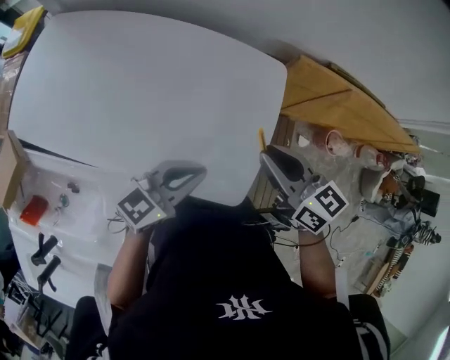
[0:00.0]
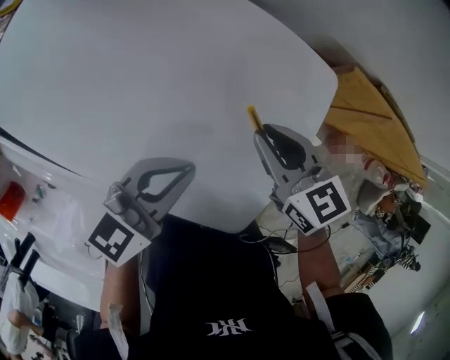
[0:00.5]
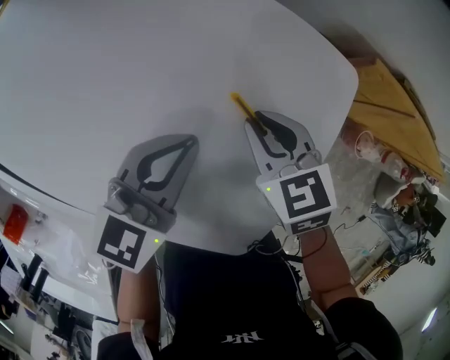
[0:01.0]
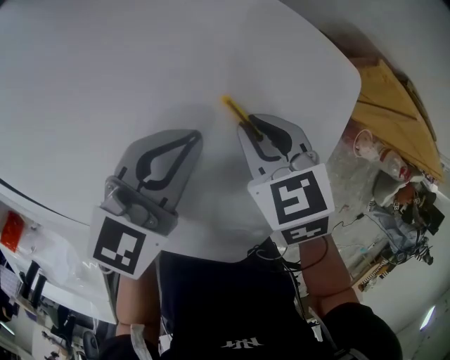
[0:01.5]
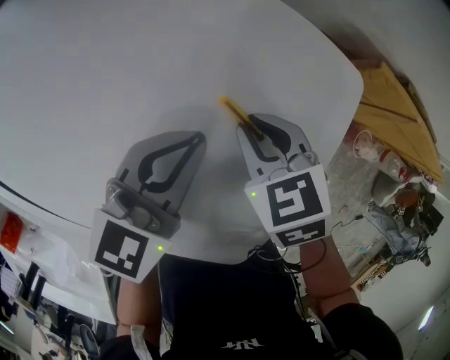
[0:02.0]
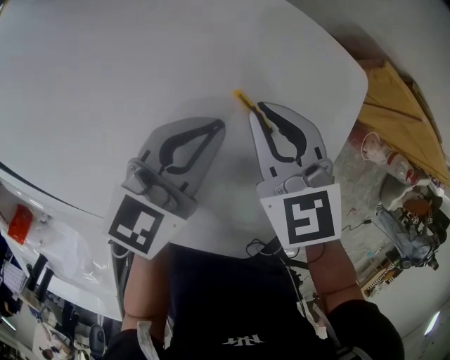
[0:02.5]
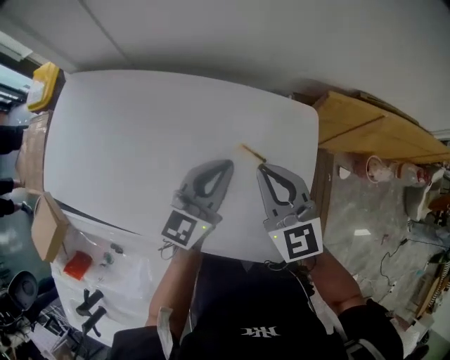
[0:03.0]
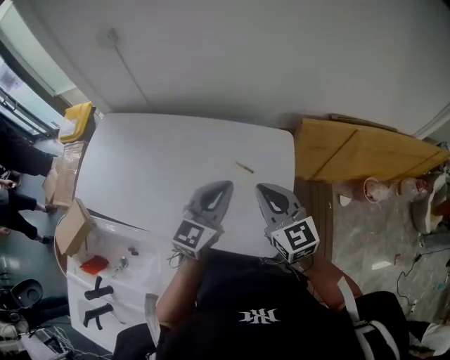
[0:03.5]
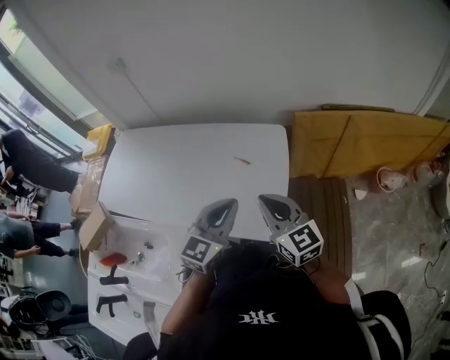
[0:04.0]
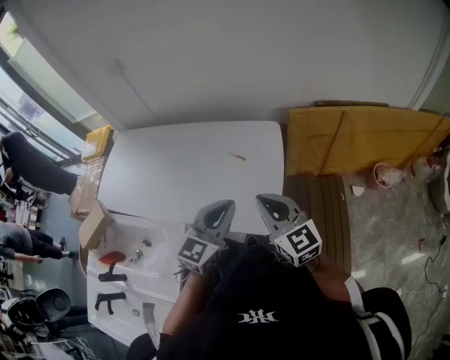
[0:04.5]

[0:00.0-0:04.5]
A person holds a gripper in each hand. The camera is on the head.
0:00.0 to 0:02.0: The left gripper moves forward and downward, roughly 30 cm, and rotates roughly 30 degrees. Meanwhile the right gripper heads downward and forward, covering some 35 cm, and points its fingers roughly 40 degrees further downward.
0:02.0 to 0:04.5: The right gripper is displaced upward and backward by some 50 cm, and points its fingers approximately 50 degrees further upward. Meanwhile the left gripper travels backward and upward by roughly 50 cm.

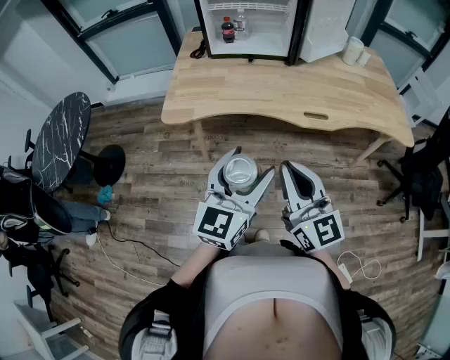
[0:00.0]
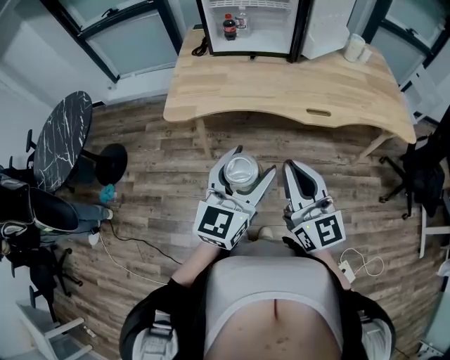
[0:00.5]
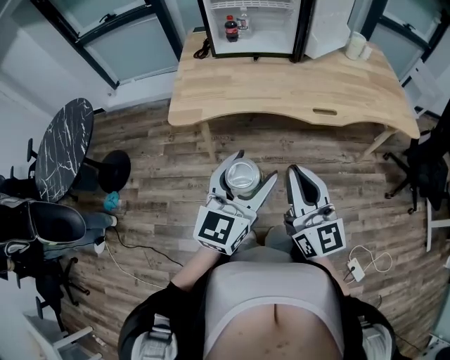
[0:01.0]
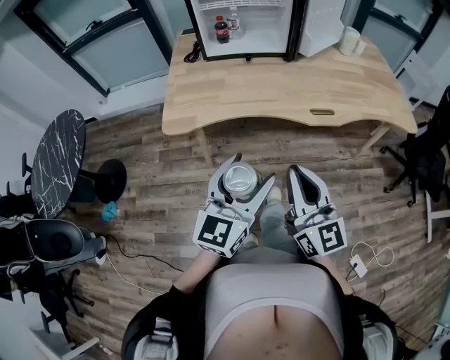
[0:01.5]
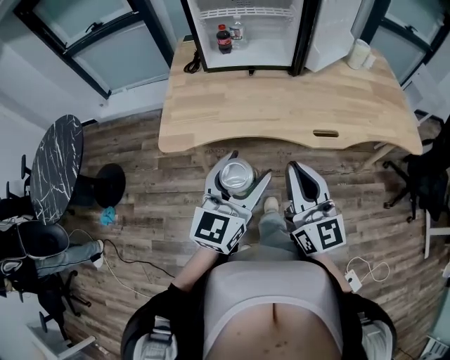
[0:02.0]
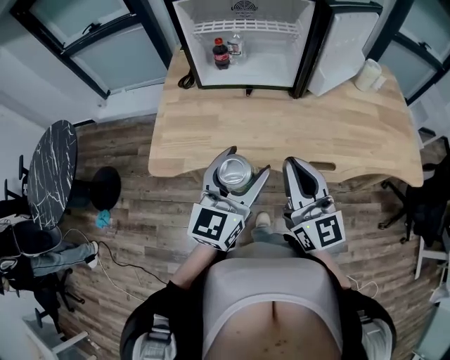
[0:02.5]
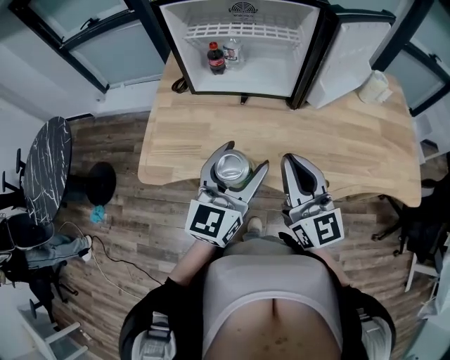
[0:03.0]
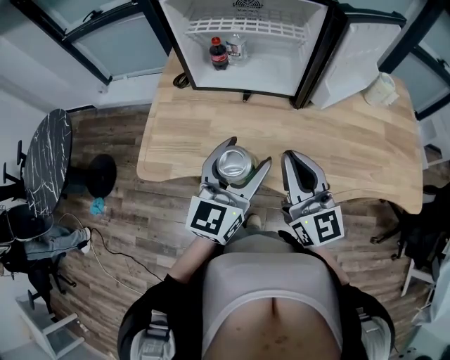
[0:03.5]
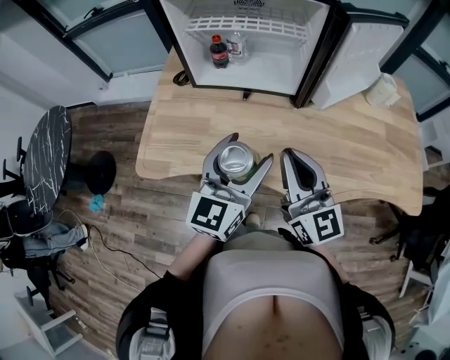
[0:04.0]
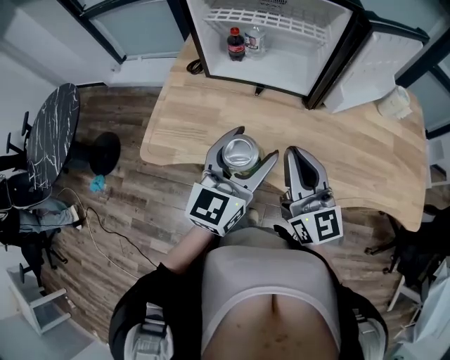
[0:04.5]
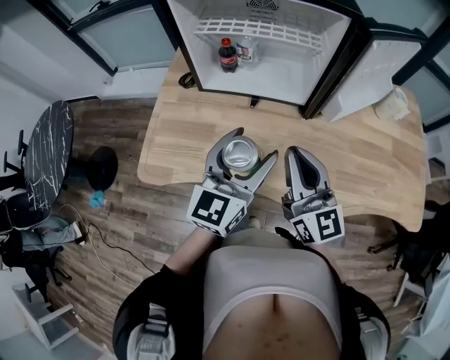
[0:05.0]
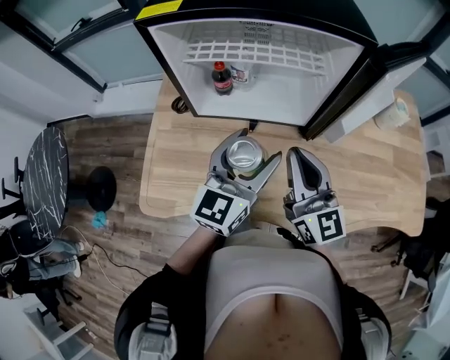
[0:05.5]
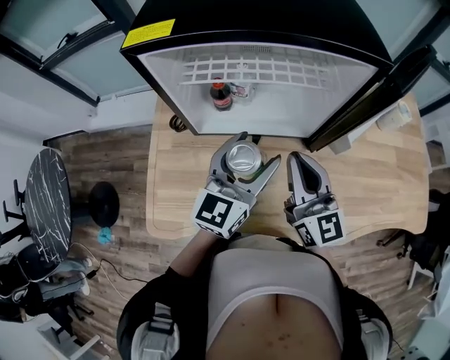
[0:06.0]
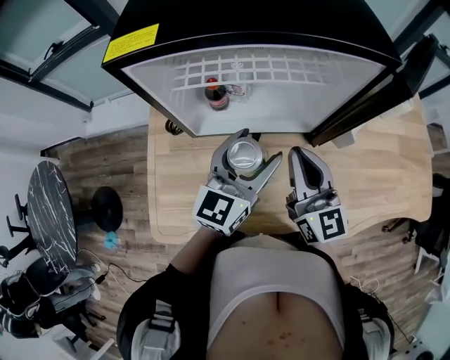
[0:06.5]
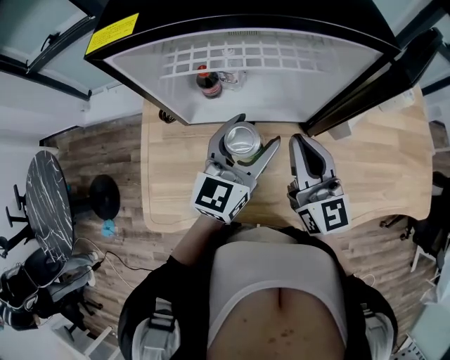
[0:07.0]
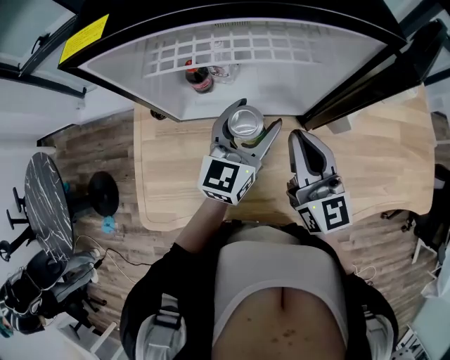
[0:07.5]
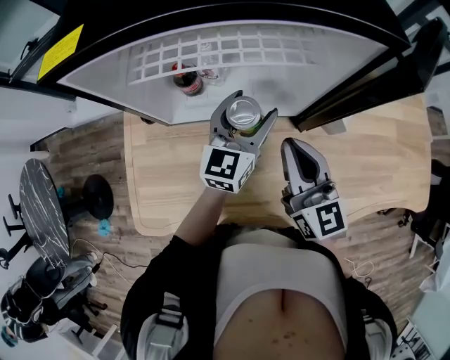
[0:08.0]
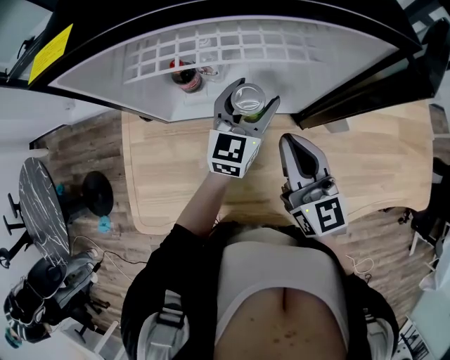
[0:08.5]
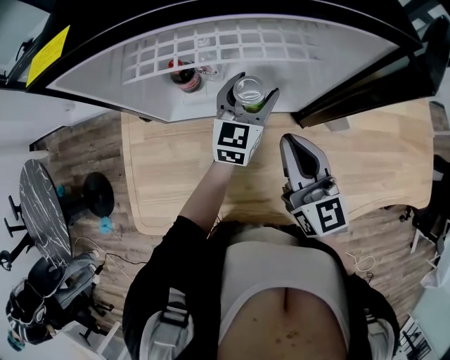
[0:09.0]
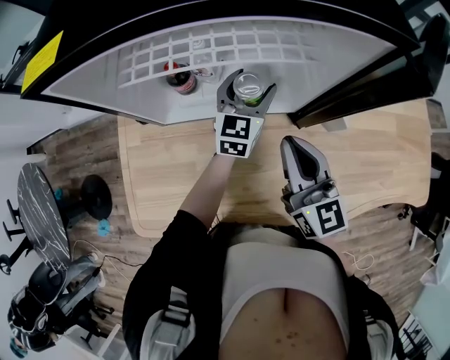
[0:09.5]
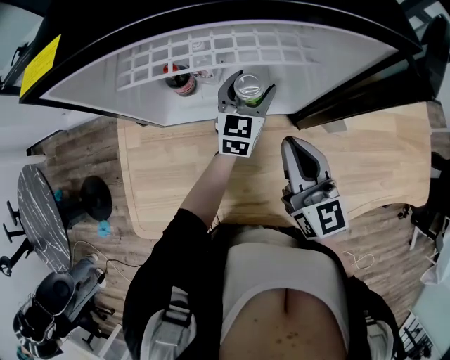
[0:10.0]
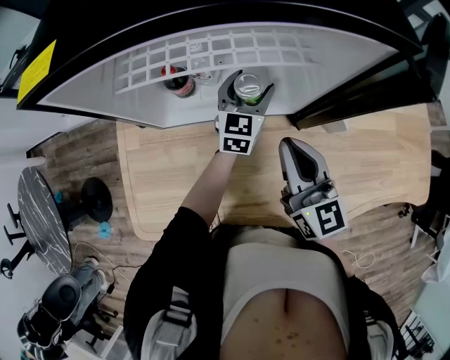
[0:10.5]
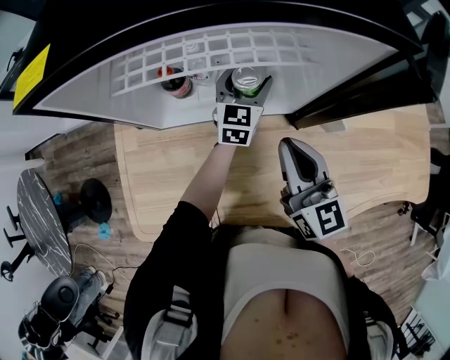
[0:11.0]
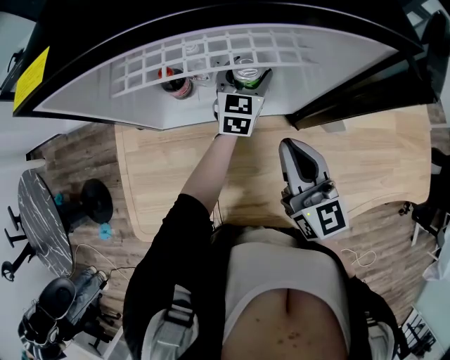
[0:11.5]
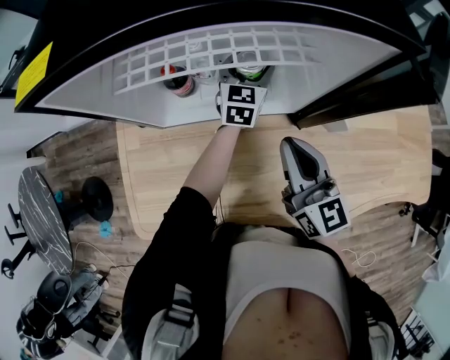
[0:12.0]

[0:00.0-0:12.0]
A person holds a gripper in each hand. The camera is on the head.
0:00.0 to 0:02.0: The two grippers go some 10 cm forward.
0:02.0 to 0:04.0: The grippers both shift forward by roughly 20 cm.
0:04.0 to 0:06.0: The two grippers go about 20 cm forward.
0:06.0 to 0:08.0: The left gripper travels forward and downward by some 15 cm; the right gripper shifts by approximately 5 cm.
0:08.0 to 0:10.0: The left gripper travels forward and downward by approximately 10 cm.
0:10.0 to 0:12.0: The left gripper travels forward by approximately 5 cm.

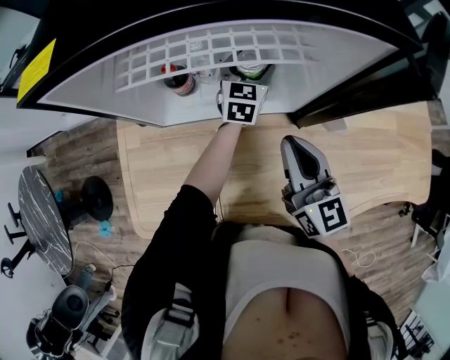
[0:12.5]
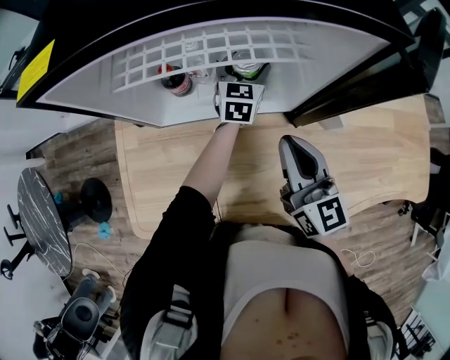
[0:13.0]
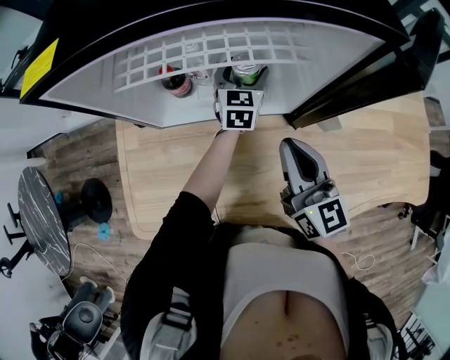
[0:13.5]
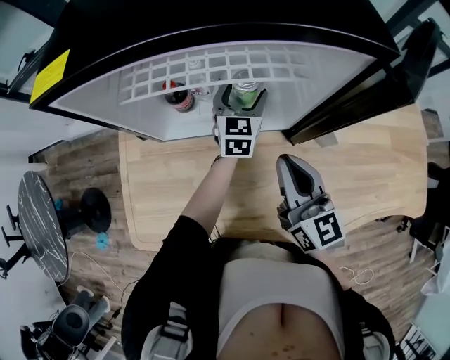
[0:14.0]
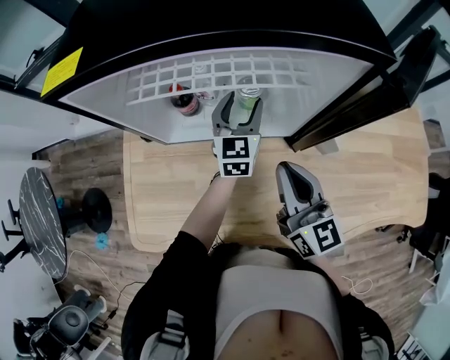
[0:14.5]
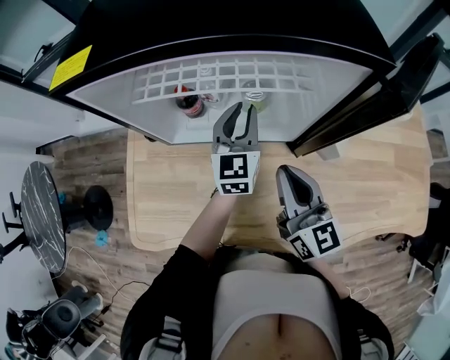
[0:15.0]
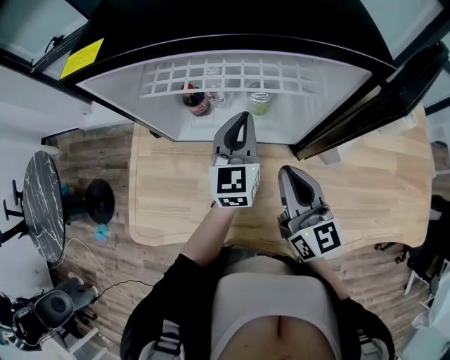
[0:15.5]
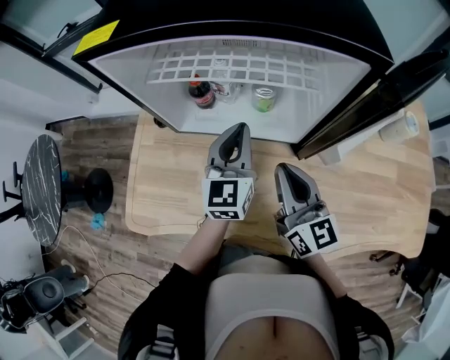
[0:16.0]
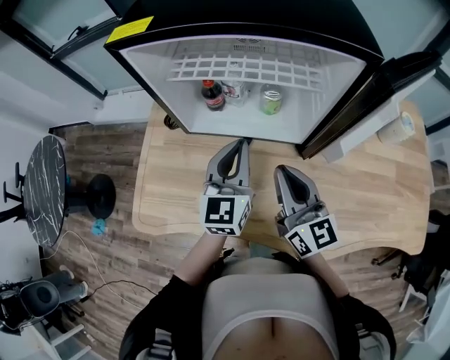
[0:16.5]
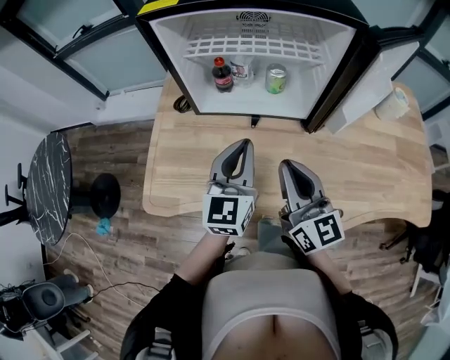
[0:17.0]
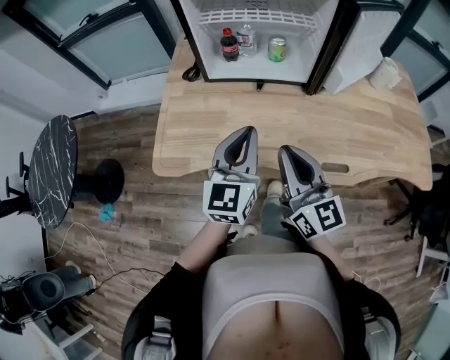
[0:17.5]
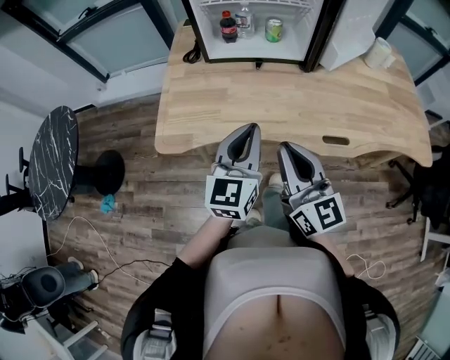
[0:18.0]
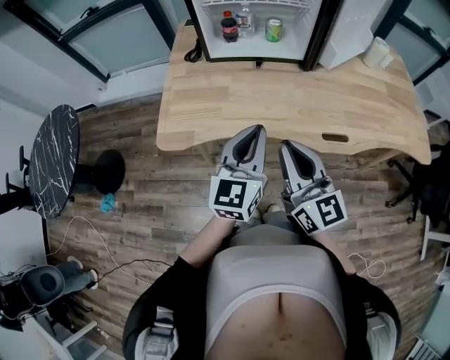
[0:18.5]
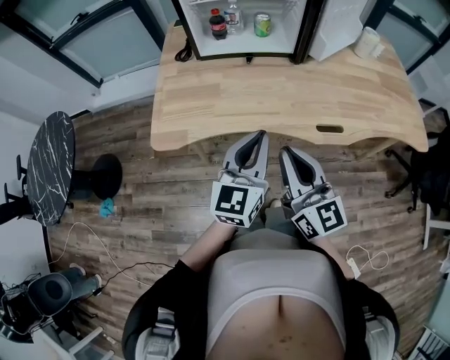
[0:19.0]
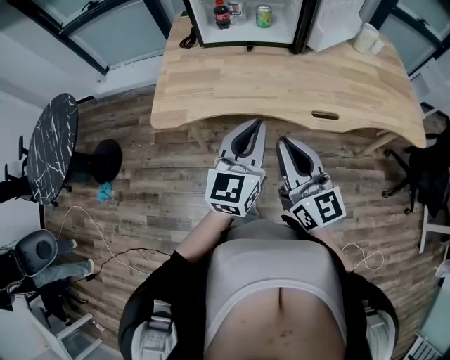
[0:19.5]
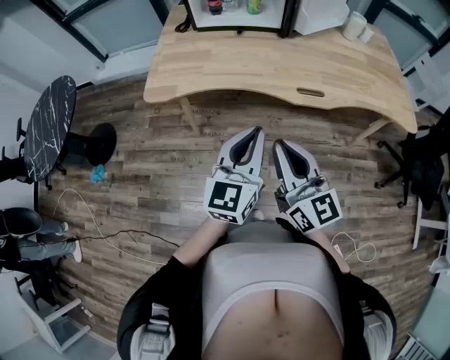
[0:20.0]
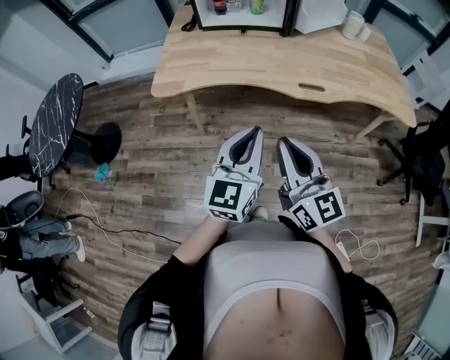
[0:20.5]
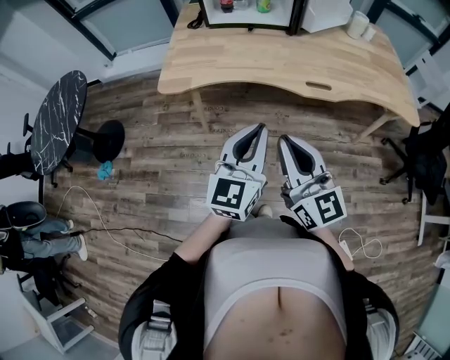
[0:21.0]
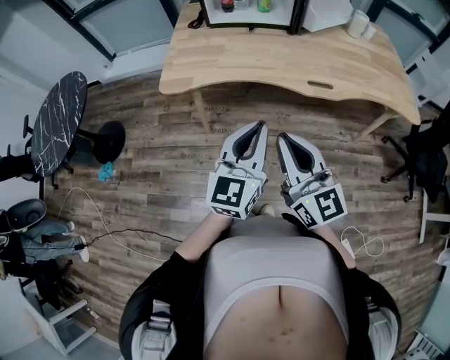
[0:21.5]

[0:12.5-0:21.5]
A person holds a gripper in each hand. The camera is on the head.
0:12.5 to 0:14.5: The left gripper travels backward by approximately 5 cm.
0:14.5 to 0:17.0: The right gripper heads backward and to the left, covering some 15 cm. The left gripper is displaced backward and to the left by roughly 25 cm, and closes up.
0:17.0 to 0:19.5: The grippers both shift backward by approximately 30 cm.
0:19.5 to 0:21.5: The grippers both shift backward by some 15 cm.

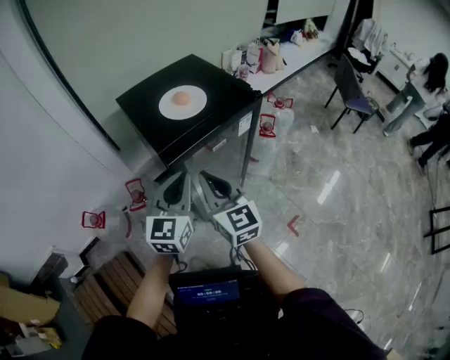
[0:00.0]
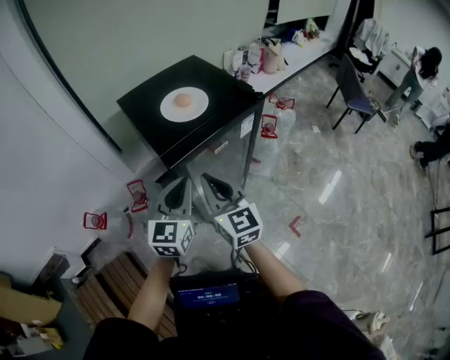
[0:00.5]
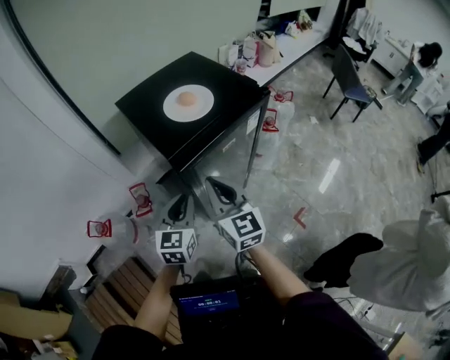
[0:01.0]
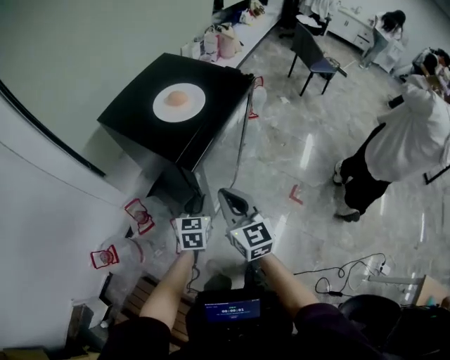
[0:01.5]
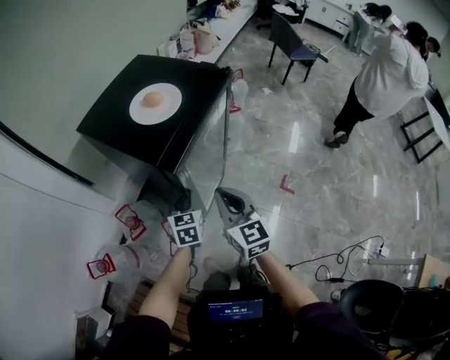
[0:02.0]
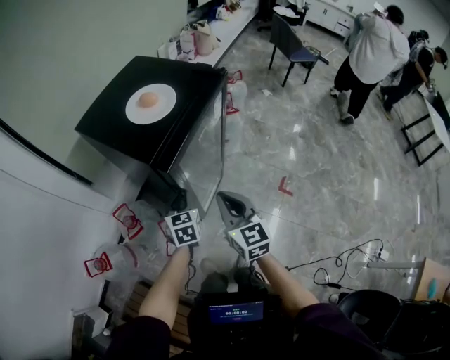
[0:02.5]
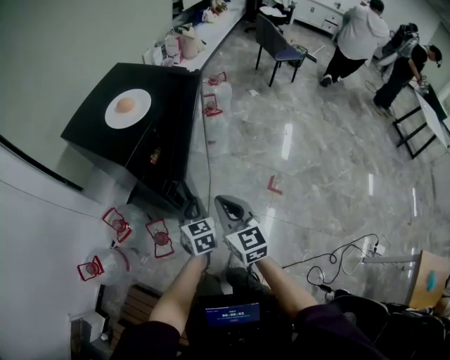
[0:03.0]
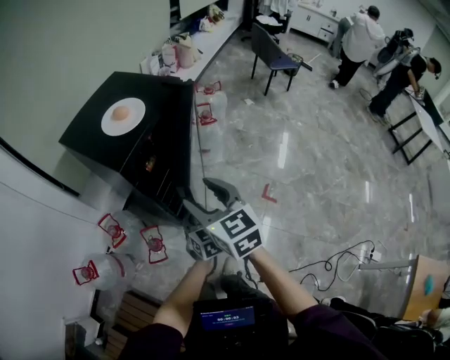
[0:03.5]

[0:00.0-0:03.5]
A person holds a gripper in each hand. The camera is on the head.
0:00.0 to 0:02.0: The right gripper heads downward, covering some 10 cm, and turns by about 30 degrees; the left gripper shifts approximately 20 cm downward, and swivels approximately 30 degrees.
0:02.0 to 0:03.5: The left gripper moves to the right and backward, some 15 cm; the right gripper shifts roughly 5 cm upward, and opens its fingers.
